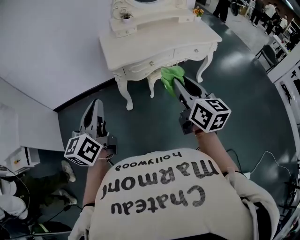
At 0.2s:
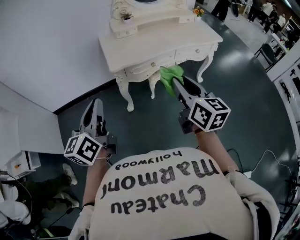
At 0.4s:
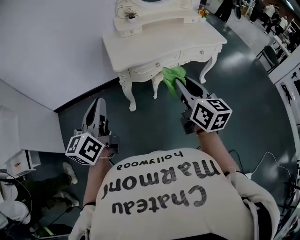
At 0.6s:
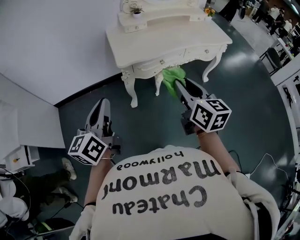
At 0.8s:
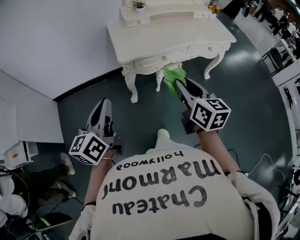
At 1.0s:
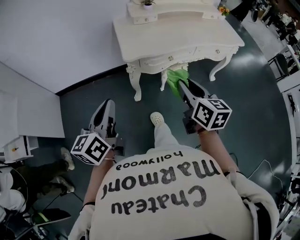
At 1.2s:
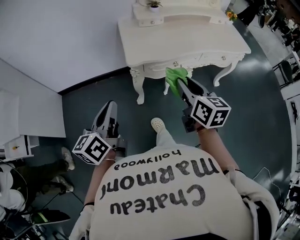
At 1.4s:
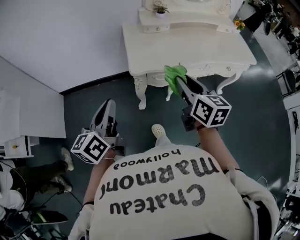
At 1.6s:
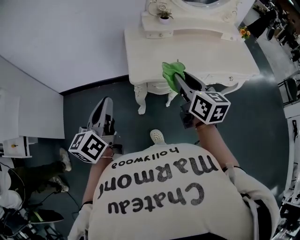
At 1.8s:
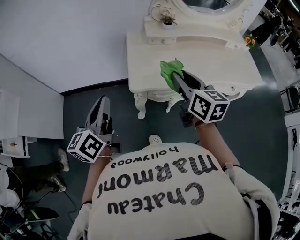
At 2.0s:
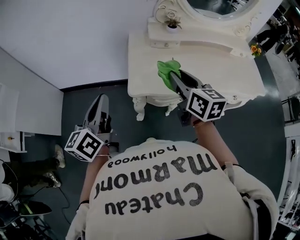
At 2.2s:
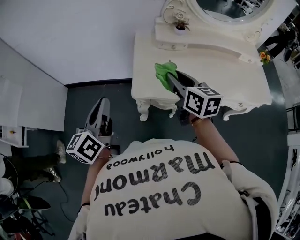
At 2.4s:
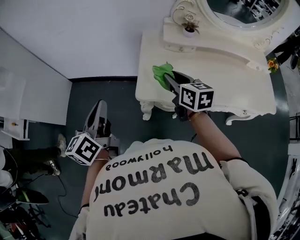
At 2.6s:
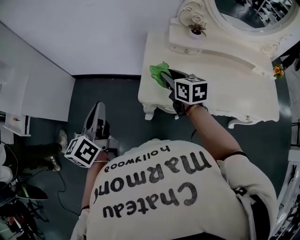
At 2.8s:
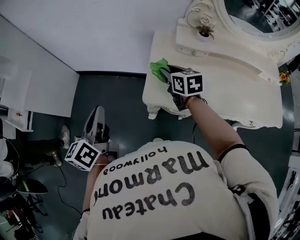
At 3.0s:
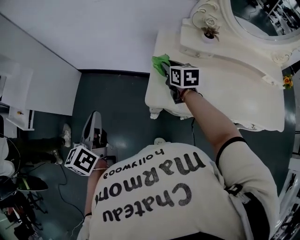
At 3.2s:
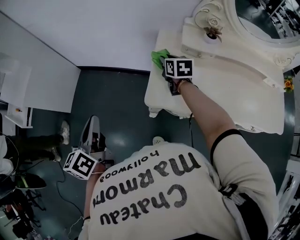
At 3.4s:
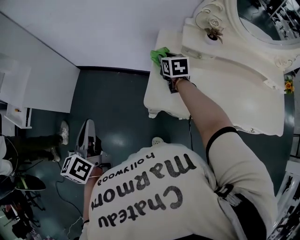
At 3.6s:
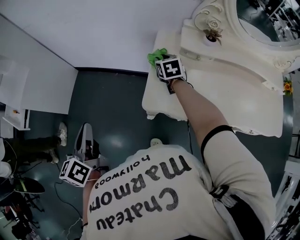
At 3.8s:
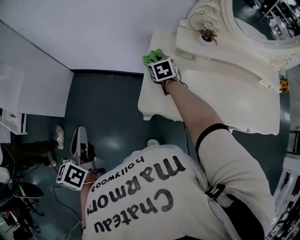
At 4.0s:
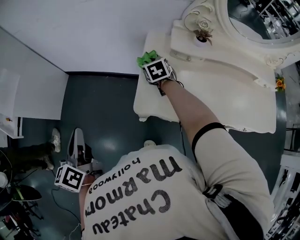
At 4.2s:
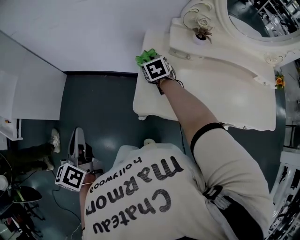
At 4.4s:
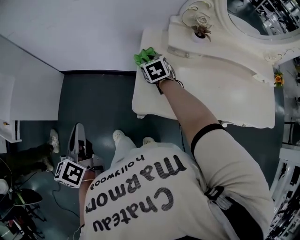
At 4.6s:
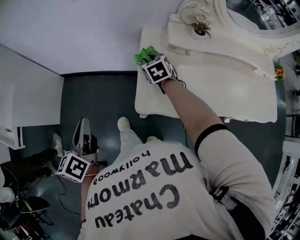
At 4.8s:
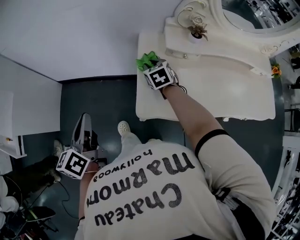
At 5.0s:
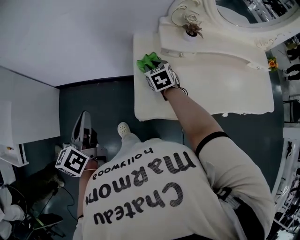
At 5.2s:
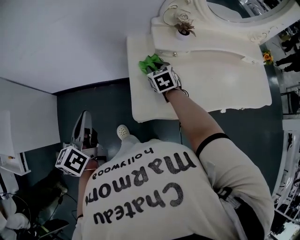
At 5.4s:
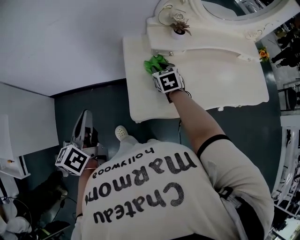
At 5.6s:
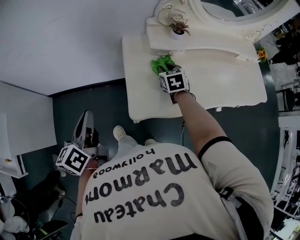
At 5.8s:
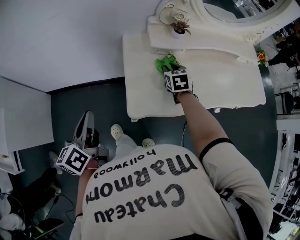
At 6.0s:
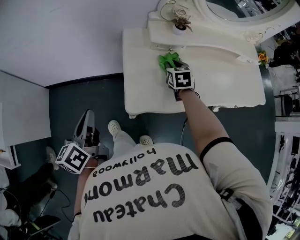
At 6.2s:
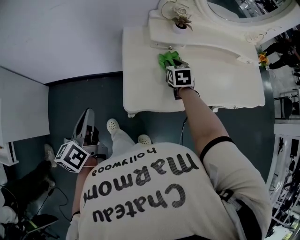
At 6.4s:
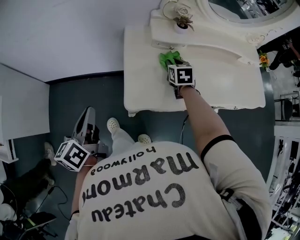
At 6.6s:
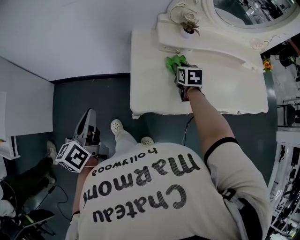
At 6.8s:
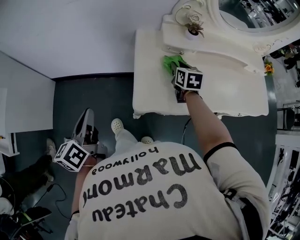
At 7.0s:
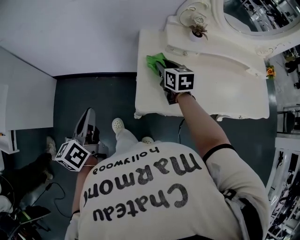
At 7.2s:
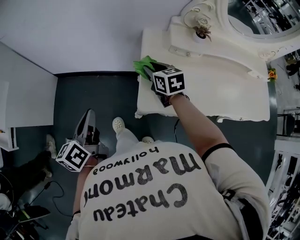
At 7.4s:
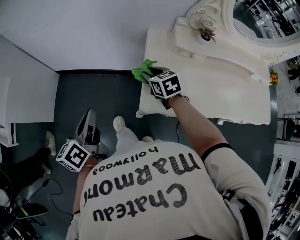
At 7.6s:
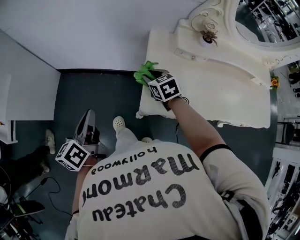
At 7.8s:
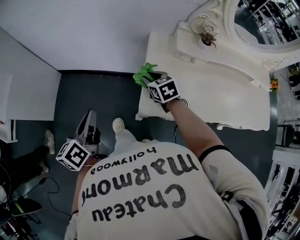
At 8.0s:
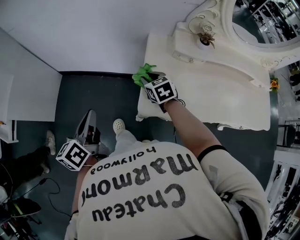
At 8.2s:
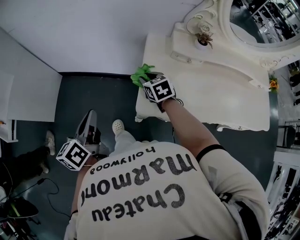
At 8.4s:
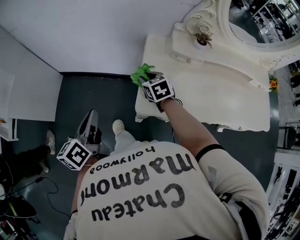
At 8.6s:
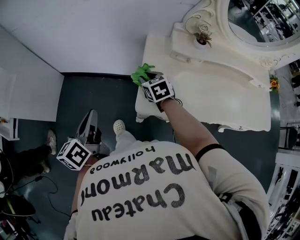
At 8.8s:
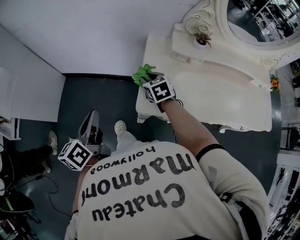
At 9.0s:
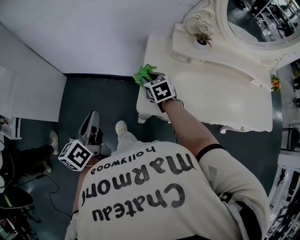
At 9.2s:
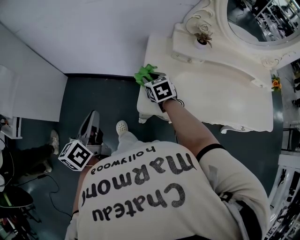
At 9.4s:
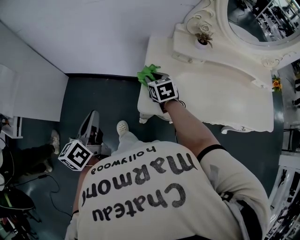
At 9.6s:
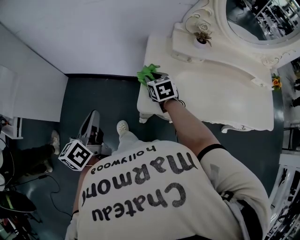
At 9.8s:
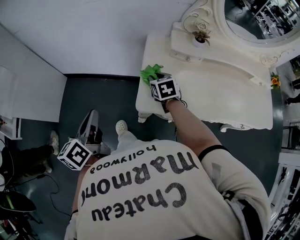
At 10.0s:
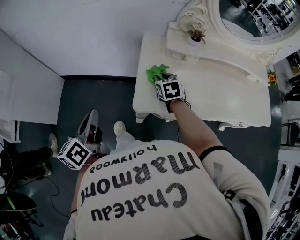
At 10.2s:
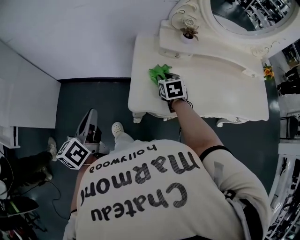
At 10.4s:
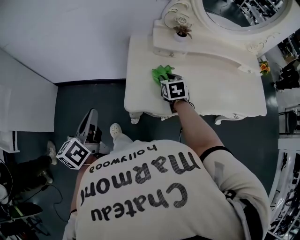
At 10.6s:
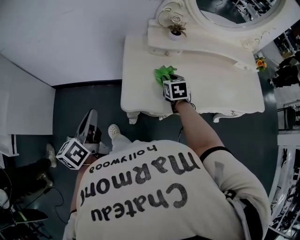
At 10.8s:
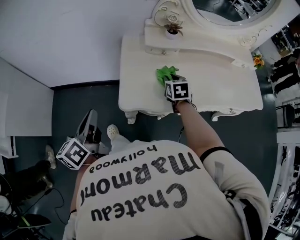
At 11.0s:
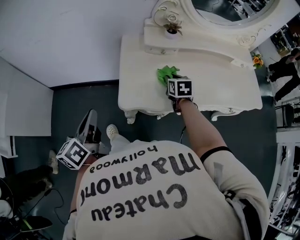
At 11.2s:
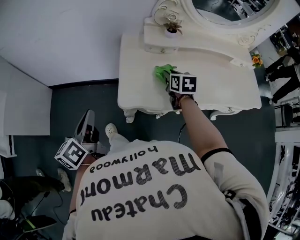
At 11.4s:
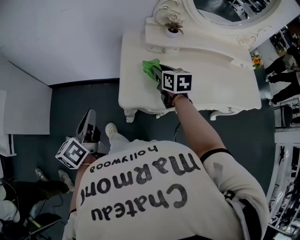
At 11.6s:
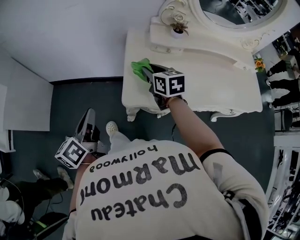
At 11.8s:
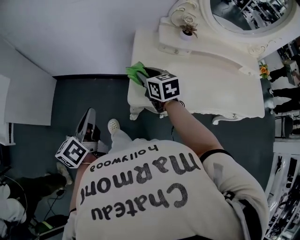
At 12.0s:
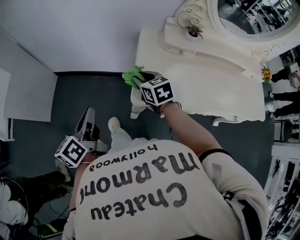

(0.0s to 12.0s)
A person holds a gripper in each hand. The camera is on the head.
0.0s - 1.6s: The two grippers go some 25 cm forward.
1.6s - 3.0s: The right gripper ends up about 35 cm from where it was, and turns by approximately 30 degrees, while the left gripper moves approximately 10 cm, and changes its angle by some 30 degrees.
3.0s - 4.4s: The right gripper shifts approximately 10 cm forward and downward, and turns by some 30 degrees.
4.4s - 6.0s: The left gripper is displaced forward and to the right by some 10 cm. Meanwhile the right gripper goes roughly 20 cm to the right, and rotates approximately 30 degrees.
6.0s - 7.6s: The right gripper heads to the left, covering roughly 20 cm, and changes its angle by approximately 30 degrees. Meanwhile the left gripper shifts about 5 cm to the left.
7.6s - 9.0s: The grippers stay close to where they were, moving slightly.
9.0s - 10.4s: The right gripper heads to the right, covering approximately 15 cm, and swivels some 20 degrees.
10.4s - 12.0s: The right gripper goes some 15 cm to the left, and changes its angle by roughly 20 degrees. Meanwhile the left gripper heads to the left, covering roughly 5 cm.

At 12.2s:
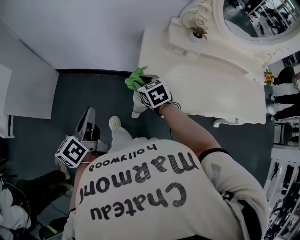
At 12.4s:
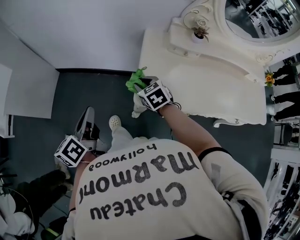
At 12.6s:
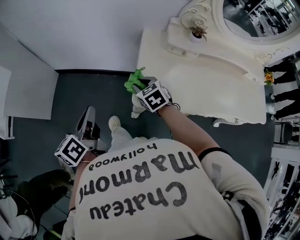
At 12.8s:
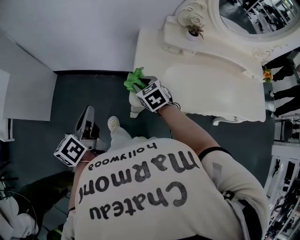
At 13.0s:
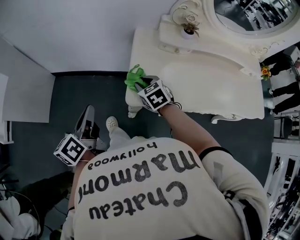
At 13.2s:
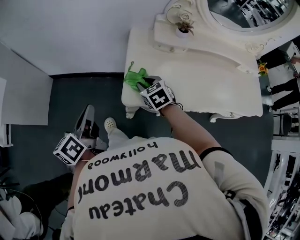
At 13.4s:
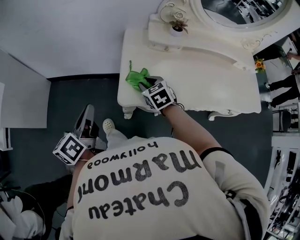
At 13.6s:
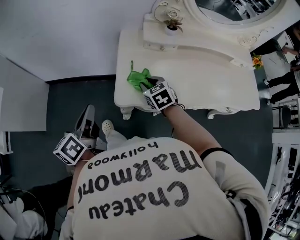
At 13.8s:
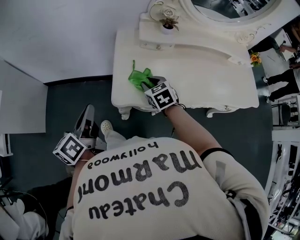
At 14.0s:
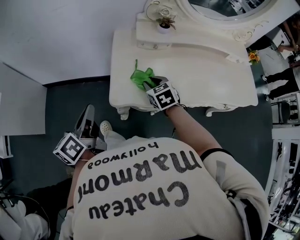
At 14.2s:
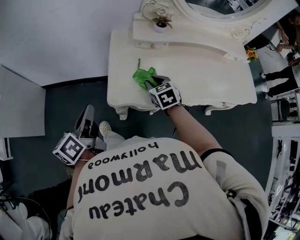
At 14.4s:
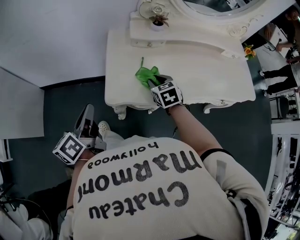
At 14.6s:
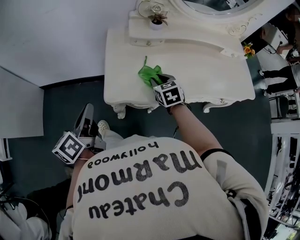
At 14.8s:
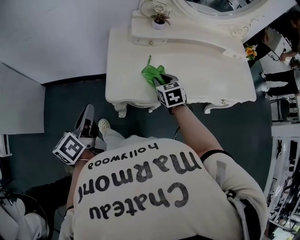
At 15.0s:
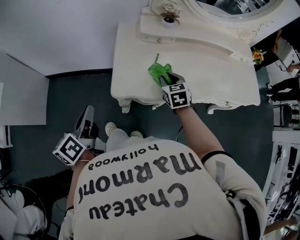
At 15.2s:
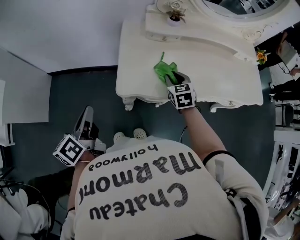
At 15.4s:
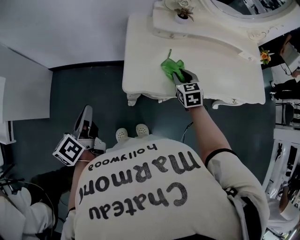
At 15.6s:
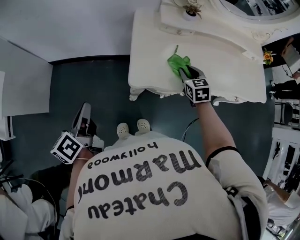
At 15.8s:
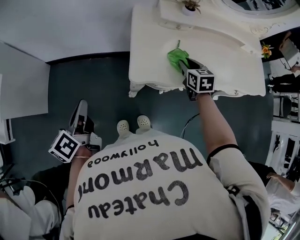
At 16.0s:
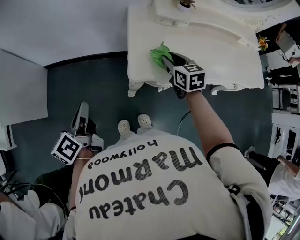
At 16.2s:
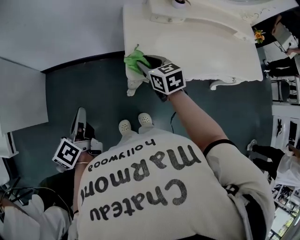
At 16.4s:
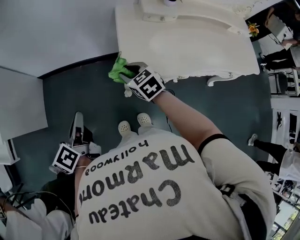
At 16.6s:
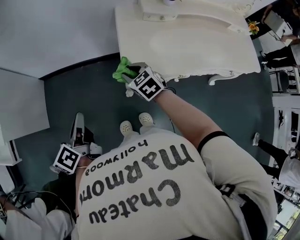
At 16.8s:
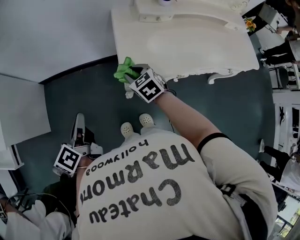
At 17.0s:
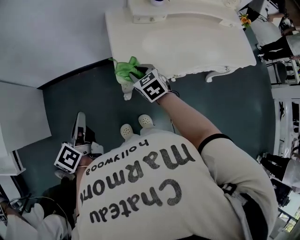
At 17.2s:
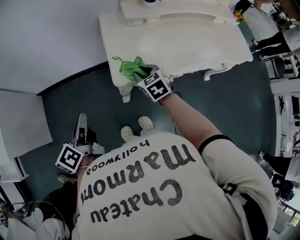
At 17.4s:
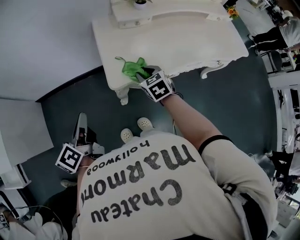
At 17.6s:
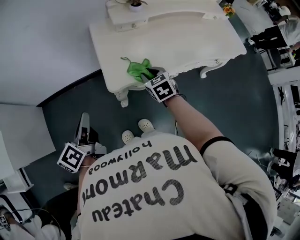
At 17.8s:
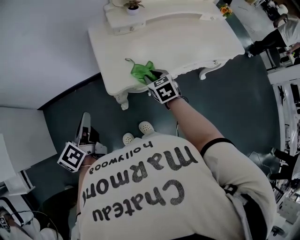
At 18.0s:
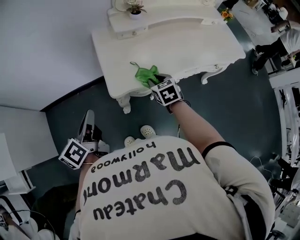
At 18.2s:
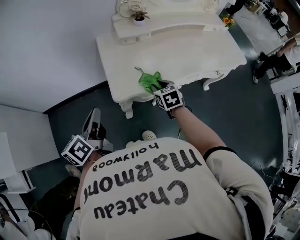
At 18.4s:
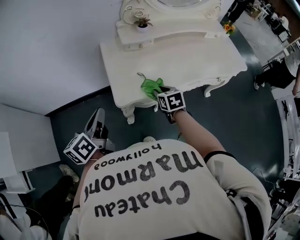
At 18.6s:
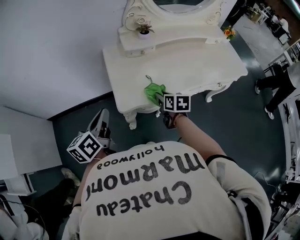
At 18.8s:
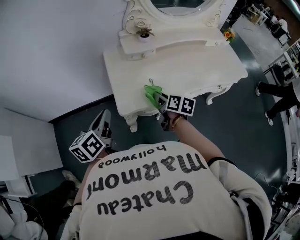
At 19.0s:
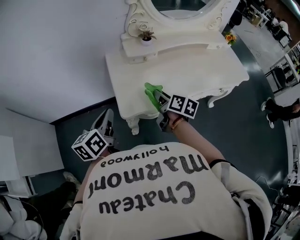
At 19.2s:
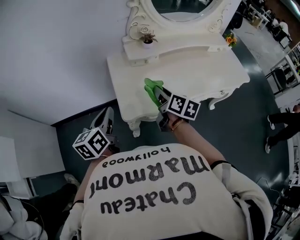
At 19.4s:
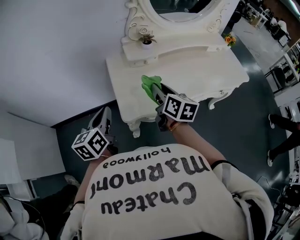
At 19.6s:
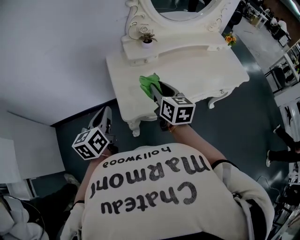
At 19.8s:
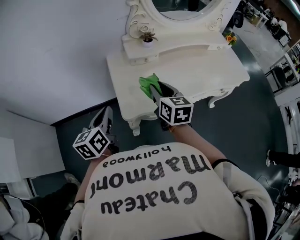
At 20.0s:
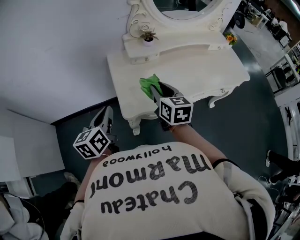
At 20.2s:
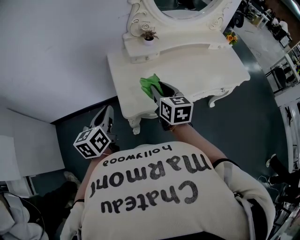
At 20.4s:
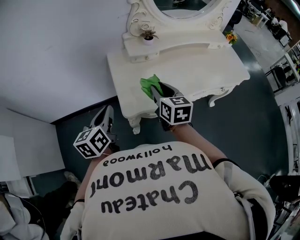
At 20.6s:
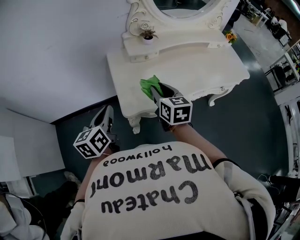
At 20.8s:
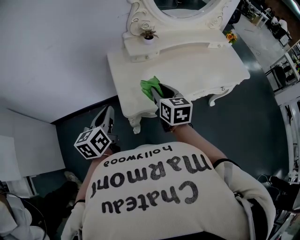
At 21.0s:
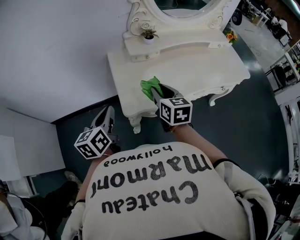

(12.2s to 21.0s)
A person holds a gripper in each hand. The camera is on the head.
12.2s - 13.6s: The two grippers go about 10 cm to the right.
13.6s - 15.2s: The right gripper heads to the right, covering some 10 cm.
15.2s - 16.6s: The right gripper heads to the left, covering roughly 25 cm, and swivels about 20 degrees; the left gripper moves to the left, about 10 cm.
16.6s - 18.0s: The left gripper travels to the right by some 10 cm, while the right gripper is displaced to the right by approximately 20 cm, and swivels about 30 degrees.
18.0s - 19.6s: The left gripper goes approximately 5 cm forward, and changes its angle by approximately 30 degrees. The right gripper moves upward, approximately 15 cm, and turns by about 40 degrees.
19.6s - 21.0s: The grippers move only a little.

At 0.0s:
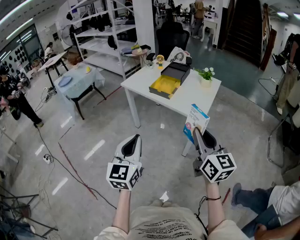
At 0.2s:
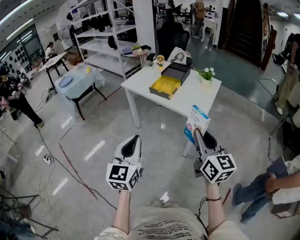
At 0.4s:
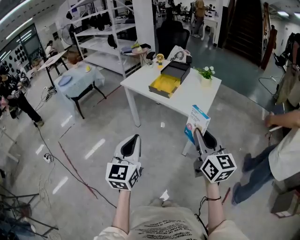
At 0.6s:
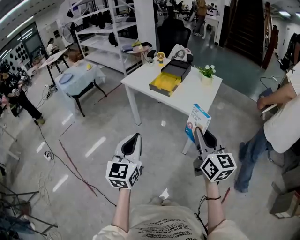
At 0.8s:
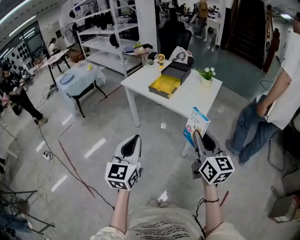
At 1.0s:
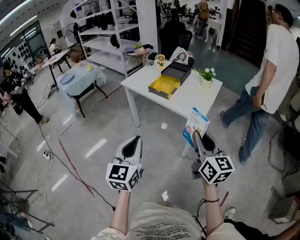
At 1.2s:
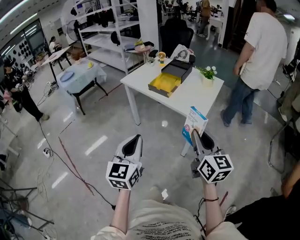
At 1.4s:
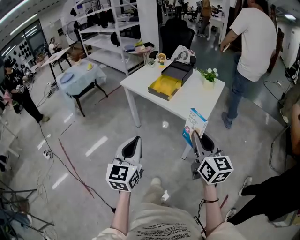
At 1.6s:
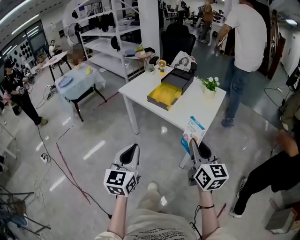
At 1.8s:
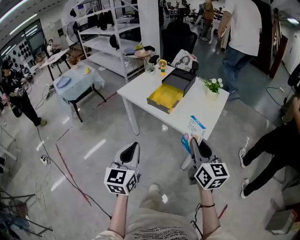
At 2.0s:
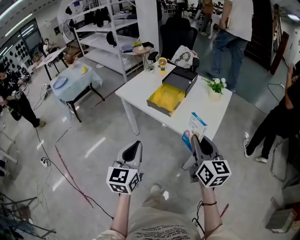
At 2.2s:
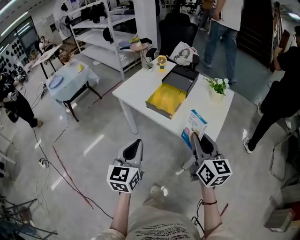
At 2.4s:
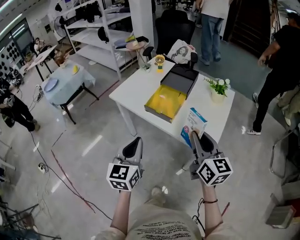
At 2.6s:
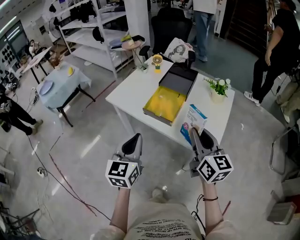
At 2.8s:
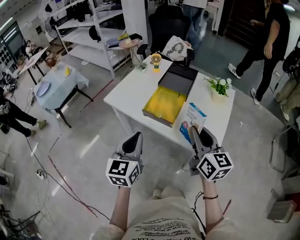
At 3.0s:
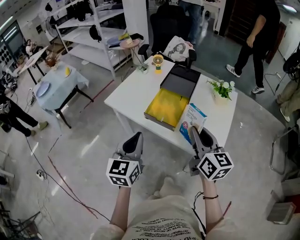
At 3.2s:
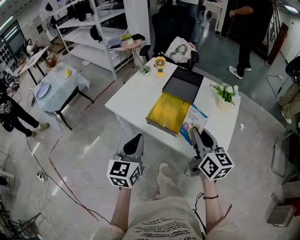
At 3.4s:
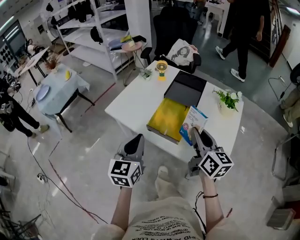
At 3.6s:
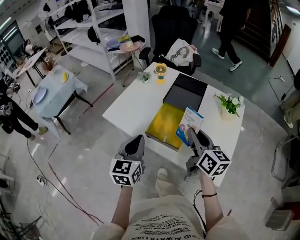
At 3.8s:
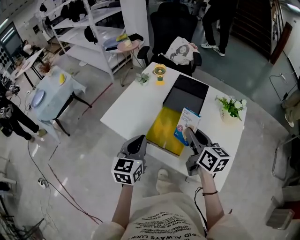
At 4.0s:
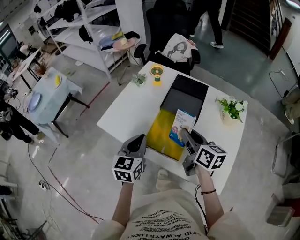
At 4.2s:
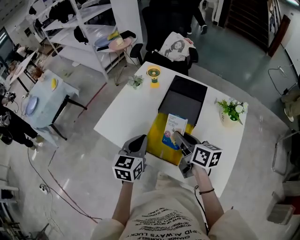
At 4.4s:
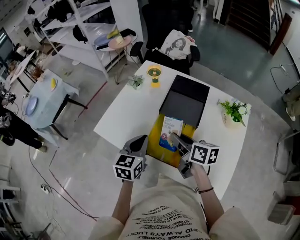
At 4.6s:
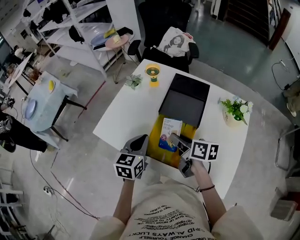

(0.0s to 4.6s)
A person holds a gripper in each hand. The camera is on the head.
0.0s - 1.6s: The right gripper shifts roughly 10 cm forward and downward. Meanwhile the left gripper heads forward, covering roughly 10 cm.
1.6s - 3.0s: The two grippers go roughly 30 cm forward.
3.0s - 4.6s: Both grippers move forward and downward, approximately 25 cm. The right gripper rotates some 40 degrees.
